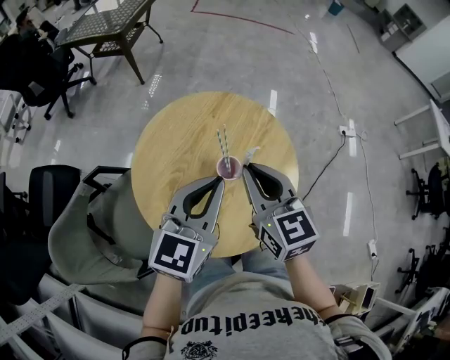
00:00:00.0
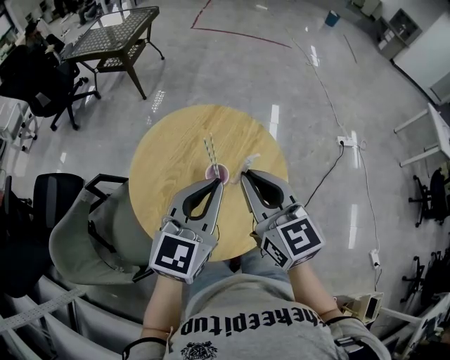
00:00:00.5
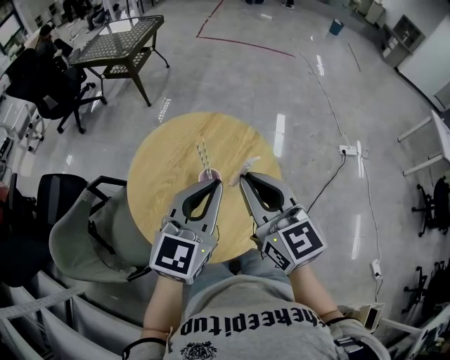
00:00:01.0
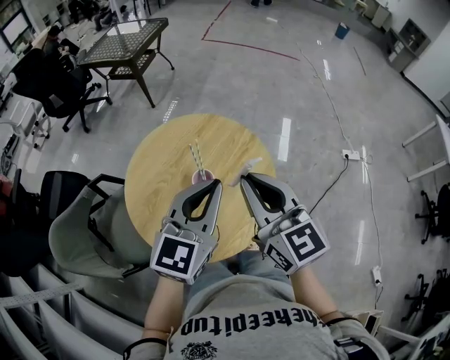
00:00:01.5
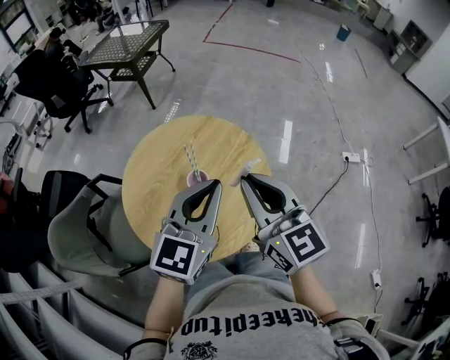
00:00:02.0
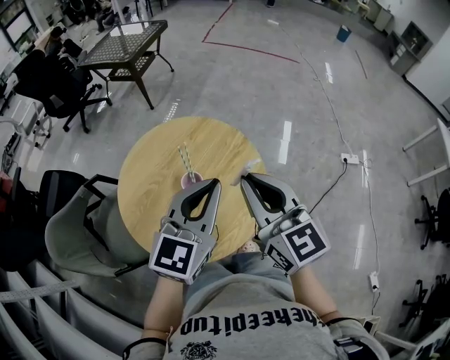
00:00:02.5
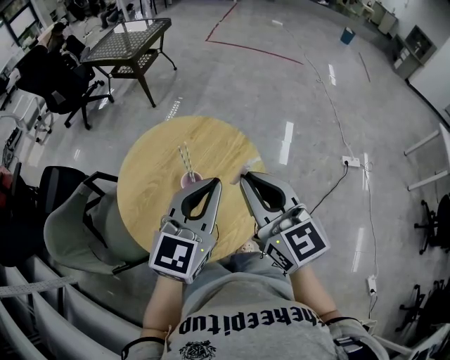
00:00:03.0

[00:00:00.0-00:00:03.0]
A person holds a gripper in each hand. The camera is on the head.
00:00:00.0 to 00:00:01.5: The left gripper is displaced to the right and upward by roughly 10 cm. Meanwhile the right gripper travels upward and to the right by roughly 15 cm.
00:00:01.5 to 00:00:03.0: The grippers make only small movements.

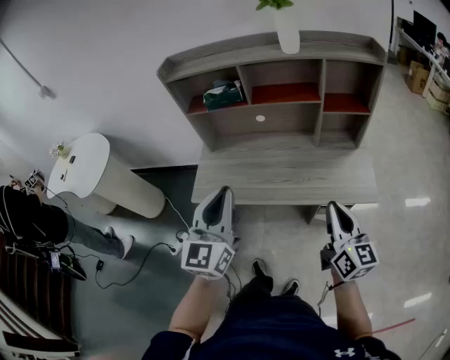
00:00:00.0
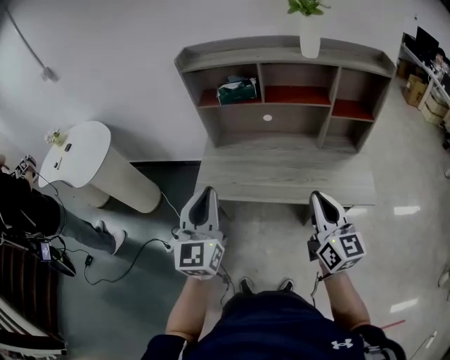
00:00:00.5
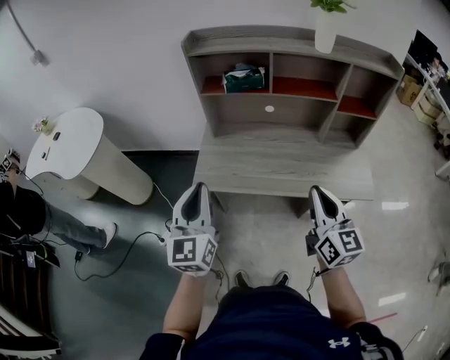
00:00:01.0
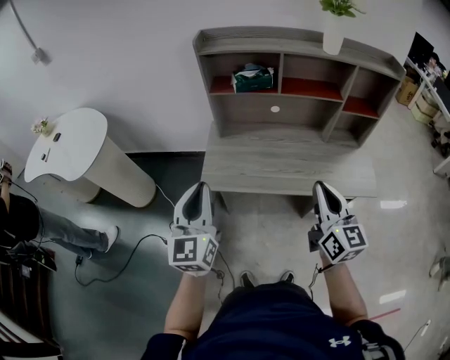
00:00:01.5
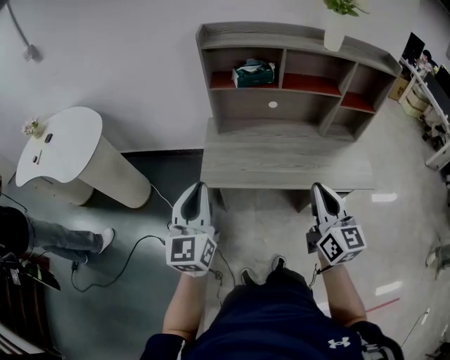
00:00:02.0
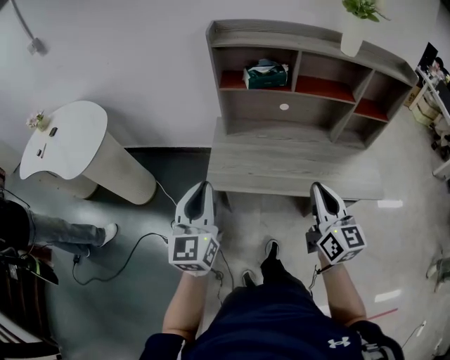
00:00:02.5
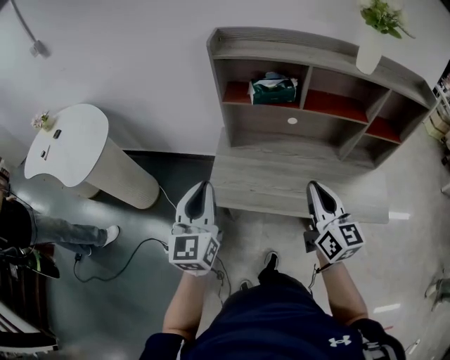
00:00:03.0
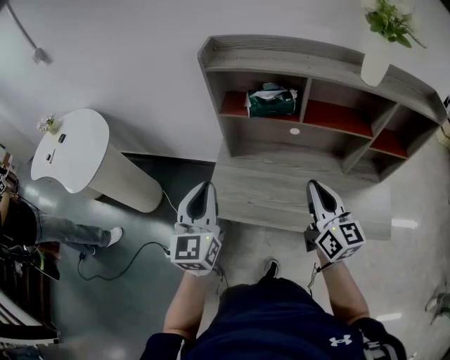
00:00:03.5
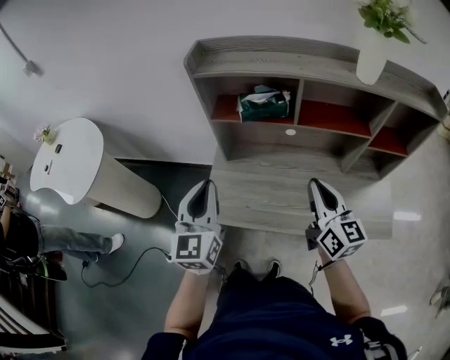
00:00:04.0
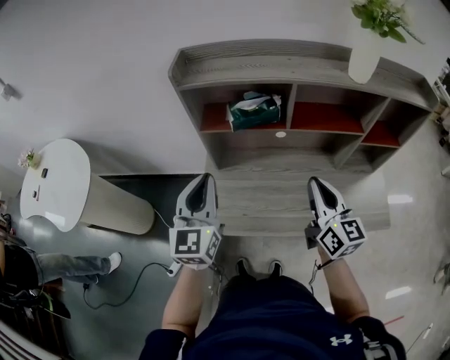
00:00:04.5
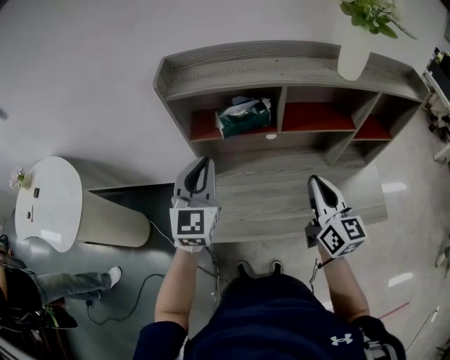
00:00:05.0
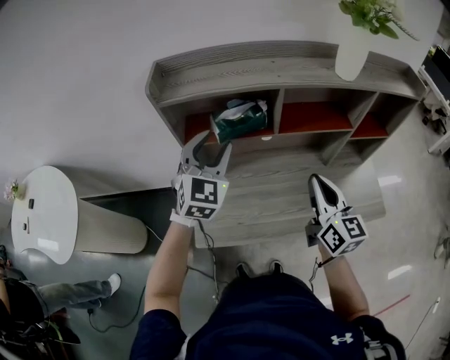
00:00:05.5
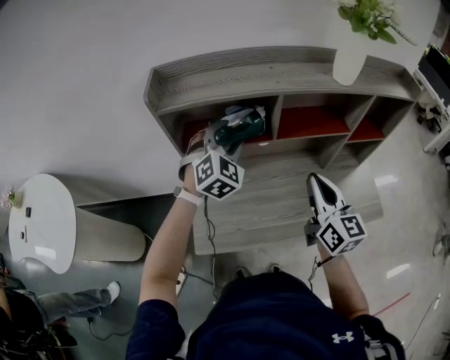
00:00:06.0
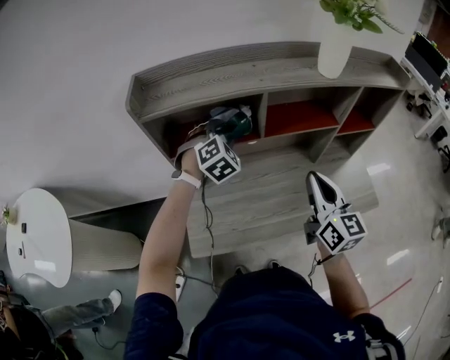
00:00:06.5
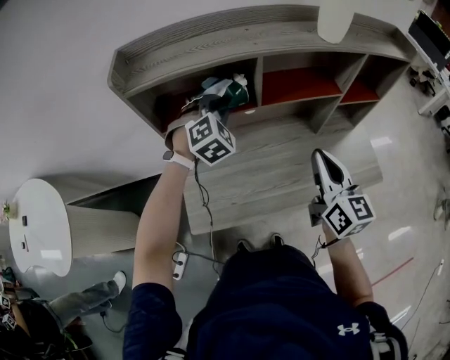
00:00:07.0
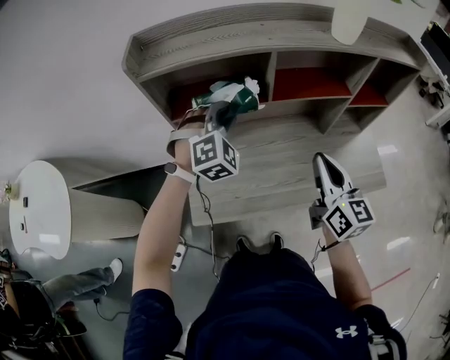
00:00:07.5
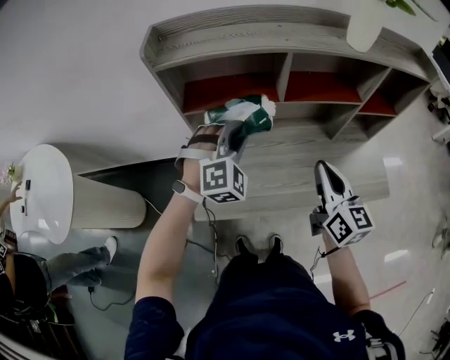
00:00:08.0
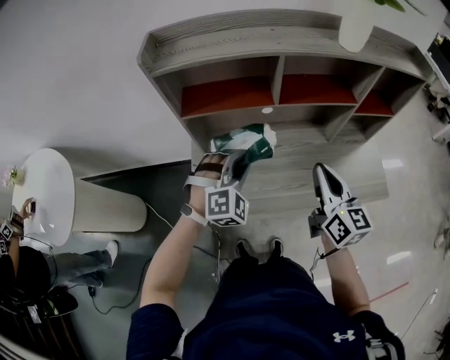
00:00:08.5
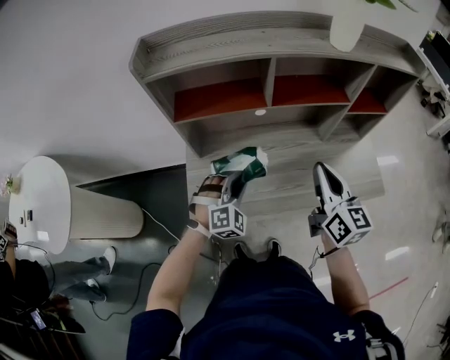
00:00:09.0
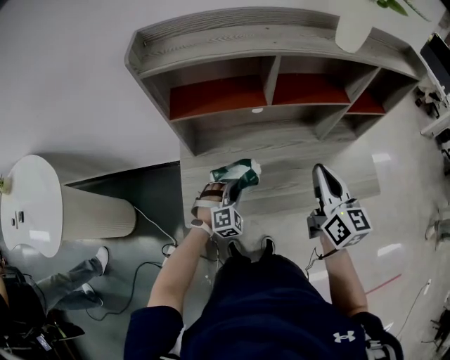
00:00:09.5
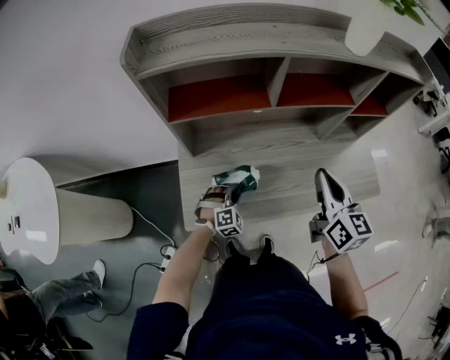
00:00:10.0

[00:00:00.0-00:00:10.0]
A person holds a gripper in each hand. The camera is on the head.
00:00:00.0 to 00:00:02.0: The grippers both shift to the left by some 25 cm.
00:00:02.0 to 00:00:04.0: The left gripper moves forward and to the right, about 20 cm, while the right gripper travels forward by about 25 cm.
00:00:04.0 to 00:00:06.0: The right gripper travels forward by roughly 5 cm. Meanwhile the left gripper is displaced forward by roughly 25 cm, rotates around the line of its fingers by some 50 degrees, clockwise from behind, and opens its fingers.
00:00:06.0 to 00:00:08.0: The left gripper is displaced backward and downward by roughly 10 cm, turns by some 20 degrees, and closes its fingers. Meanwhile the right gripper moves approximately 5 cm.
00:00:08.0 to 00:00:10.0: The left gripper heads downward, covering about 30 cm.

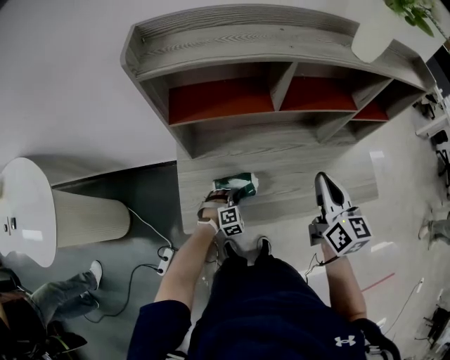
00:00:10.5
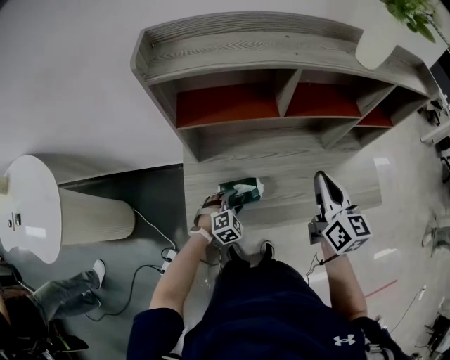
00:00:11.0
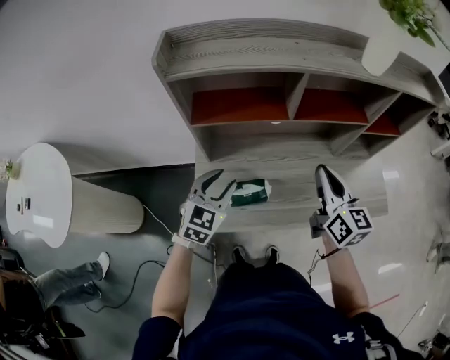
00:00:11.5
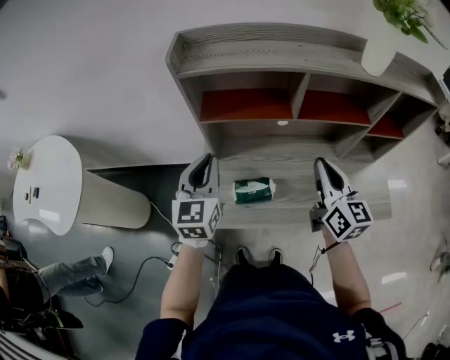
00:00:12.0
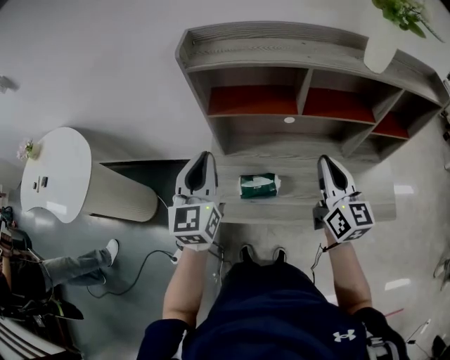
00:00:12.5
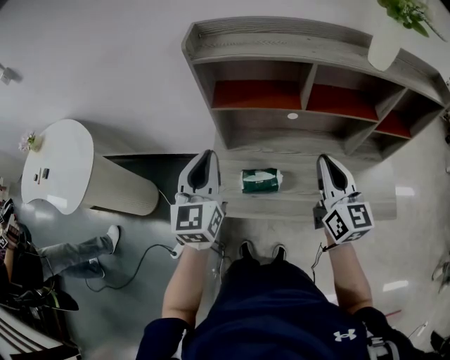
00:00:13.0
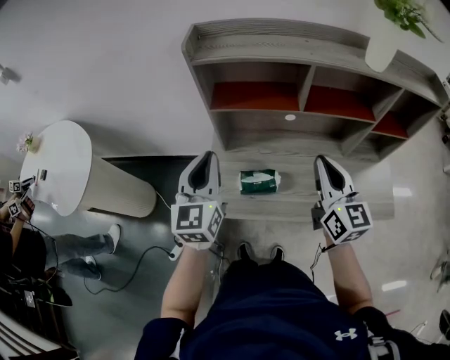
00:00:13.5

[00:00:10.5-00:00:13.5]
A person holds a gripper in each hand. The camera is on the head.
00:00:10.5 to 00:00:12.0: The right gripper changes place by approximately 5 cm. The left gripper heads upward, covering approximately 40 cm, tilts its fingers some 50 degrees upward, and closes its fingers.
00:00:12.0 to 00:00:13.5: The left gripper shifts some 5 cm backward.

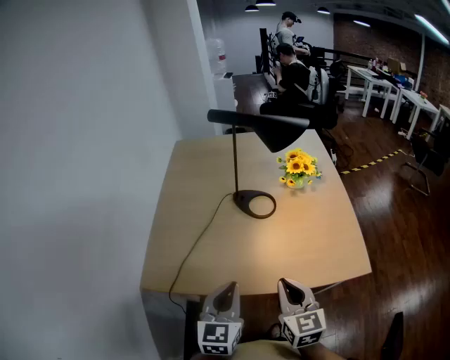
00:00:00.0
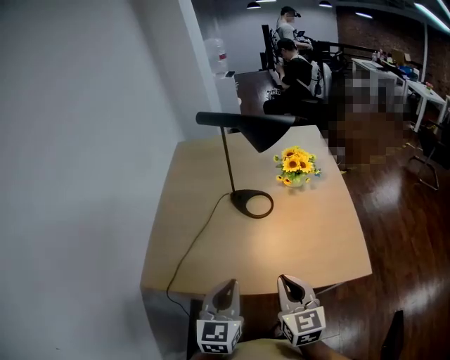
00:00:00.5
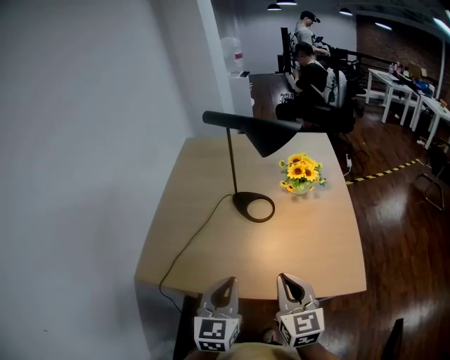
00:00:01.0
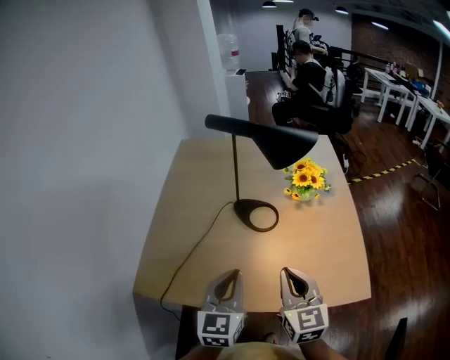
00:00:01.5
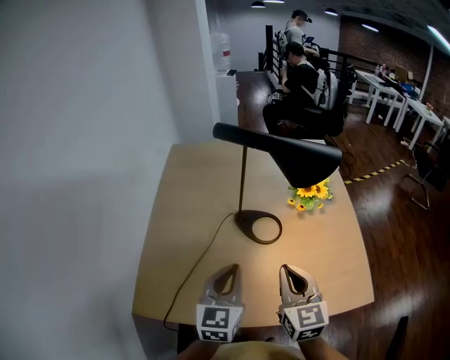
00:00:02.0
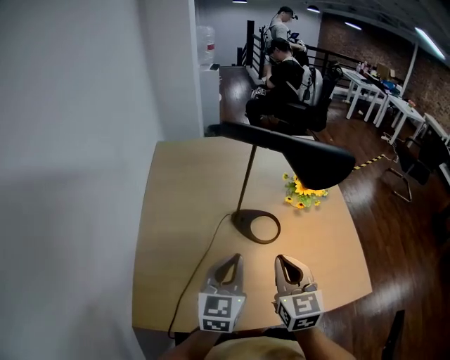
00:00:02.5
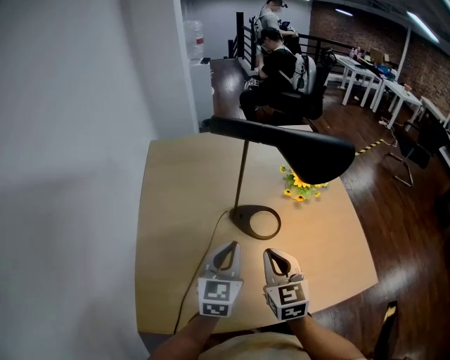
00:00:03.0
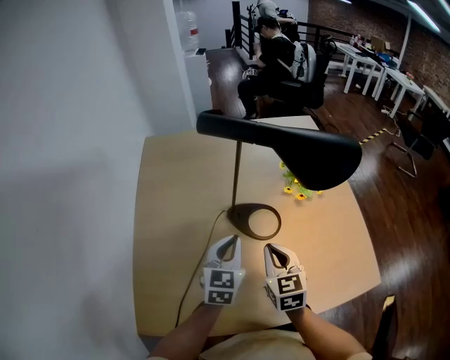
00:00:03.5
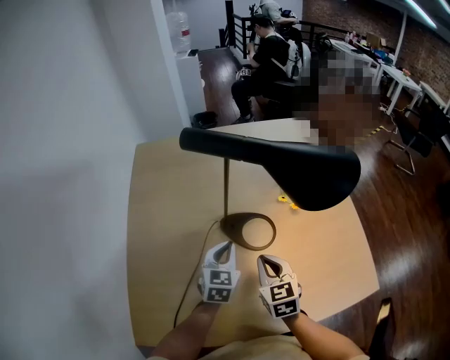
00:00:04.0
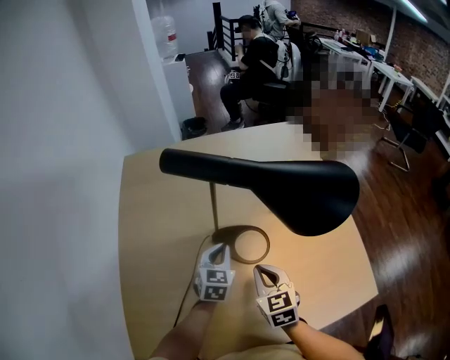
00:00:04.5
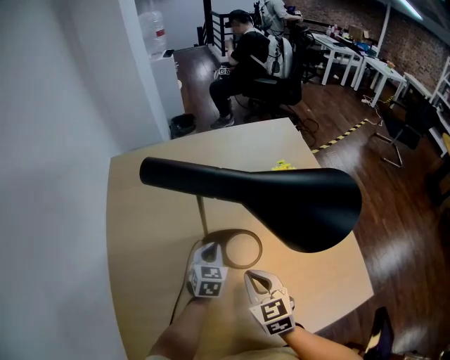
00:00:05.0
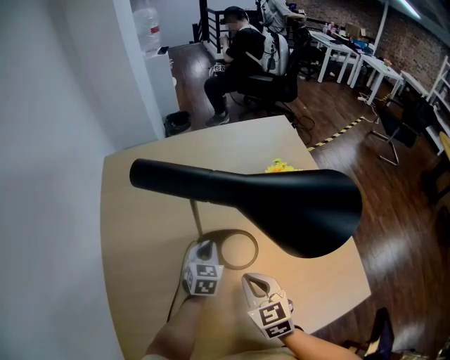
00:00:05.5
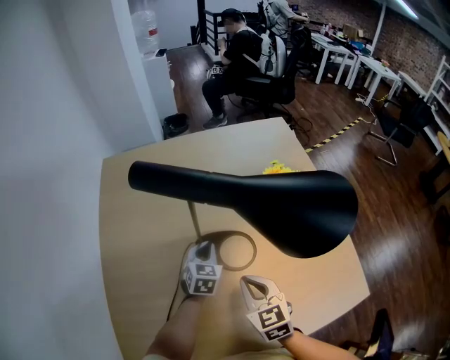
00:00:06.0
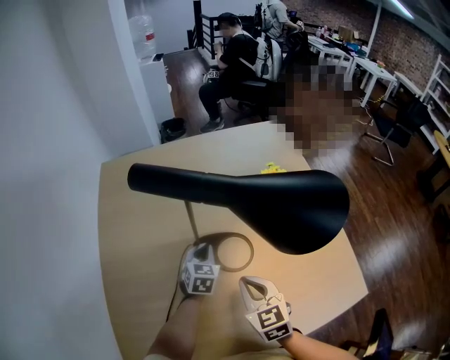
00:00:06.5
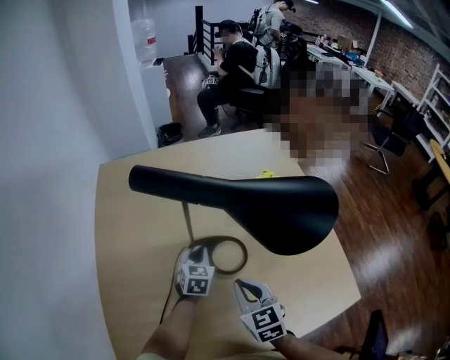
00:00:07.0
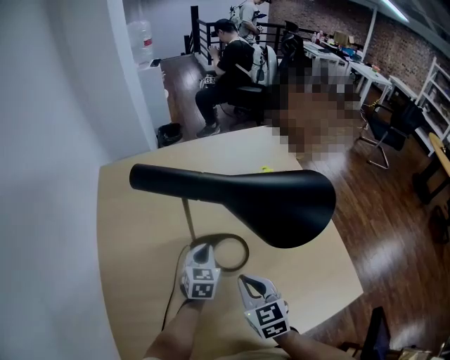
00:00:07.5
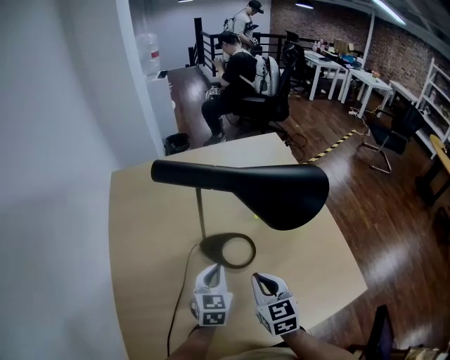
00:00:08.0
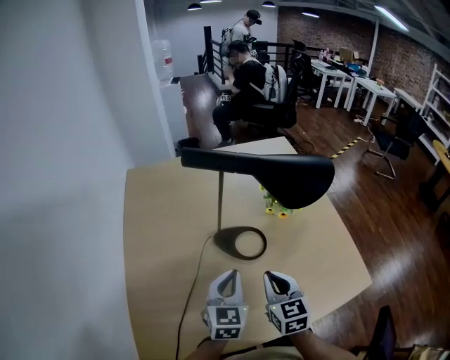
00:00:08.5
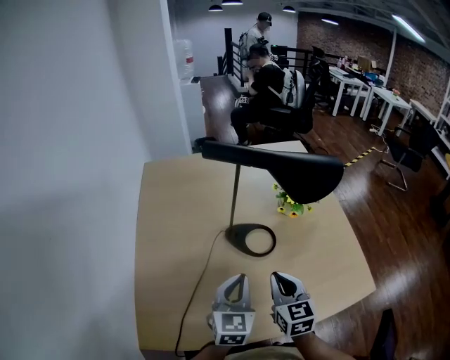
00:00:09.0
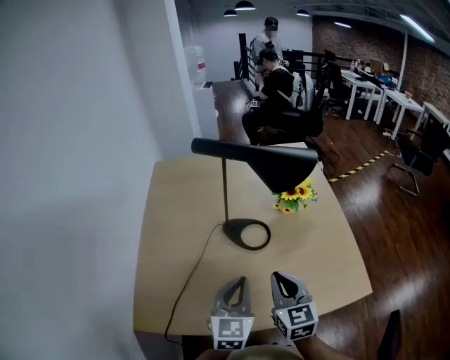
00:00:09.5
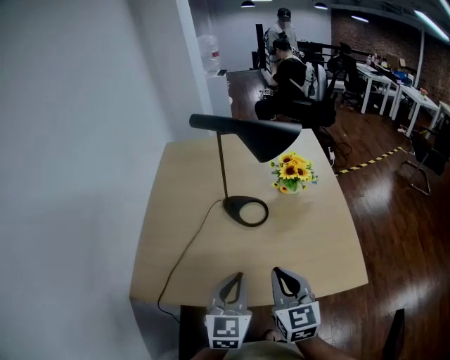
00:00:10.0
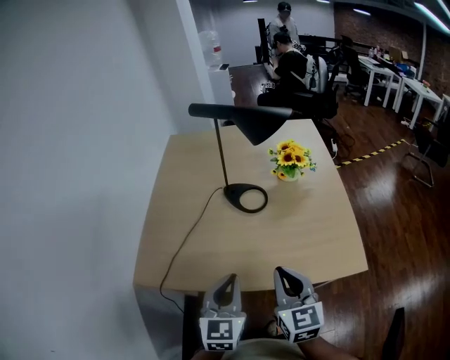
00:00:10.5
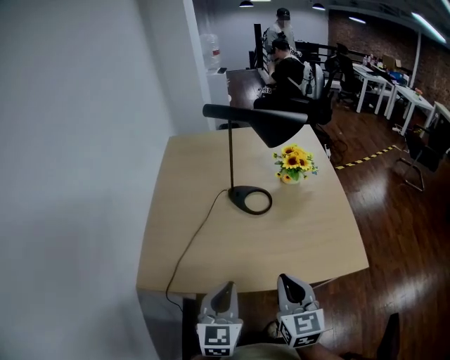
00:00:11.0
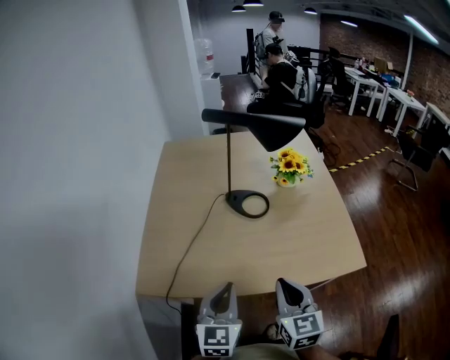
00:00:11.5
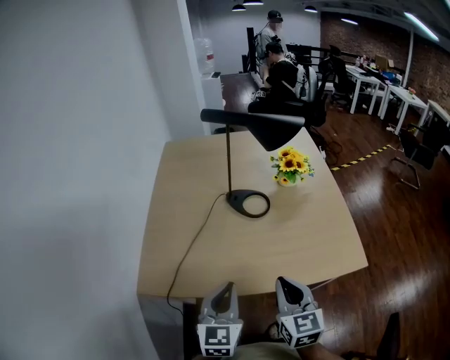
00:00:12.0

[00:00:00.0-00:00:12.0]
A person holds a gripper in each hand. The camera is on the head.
00:00:00.0 to 00:00:02.0: Both grippers travel together forward, some 15 cm.
00:00:02.0 to 00:00:04.0: The right gripper shifts roughly 15 cm downward and forward. The left gripper travels forward and downward by about 20 cm.
00:00:04.0 to 00:00:06.0: The left gripper goes approximately 10 cm forward and downward.
00:00:06.0 to 00:00:08.0: The left gripper travels backward and upward by approximately 15 cm.
00:00:08.0 to 00:00:10.0: Both grippers move backward and upward, approximately 25 cm.
00:00:10.0 to 00:00:12.0: The right gripper is displaced backward by approximately 10 cm. Meanwhile the left gripper travels backward and to the left by about 10 cm.
